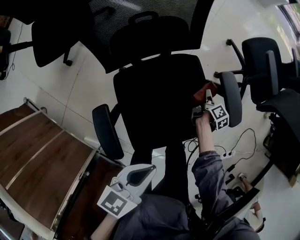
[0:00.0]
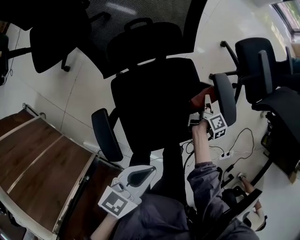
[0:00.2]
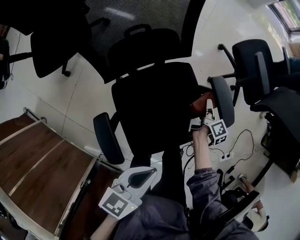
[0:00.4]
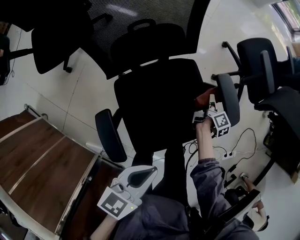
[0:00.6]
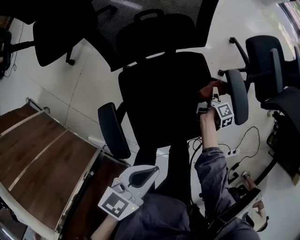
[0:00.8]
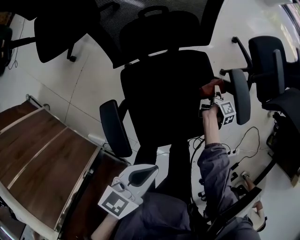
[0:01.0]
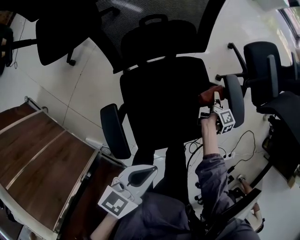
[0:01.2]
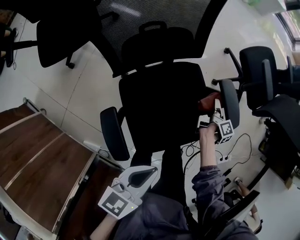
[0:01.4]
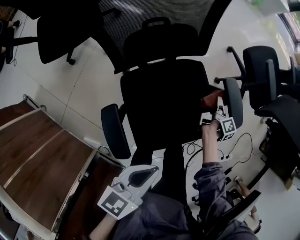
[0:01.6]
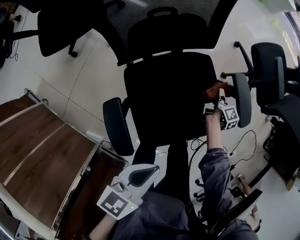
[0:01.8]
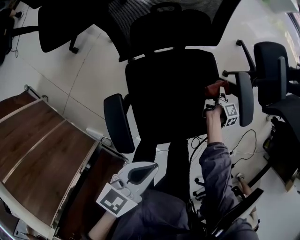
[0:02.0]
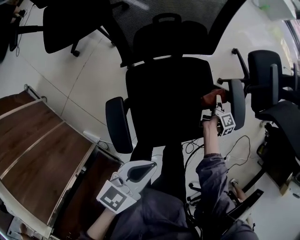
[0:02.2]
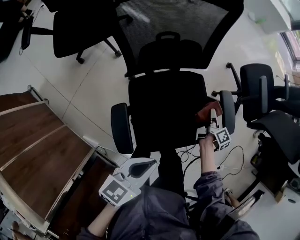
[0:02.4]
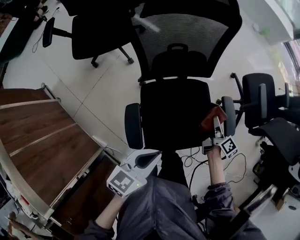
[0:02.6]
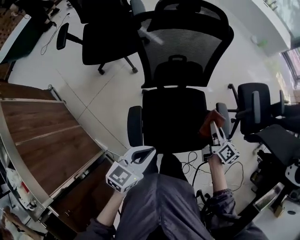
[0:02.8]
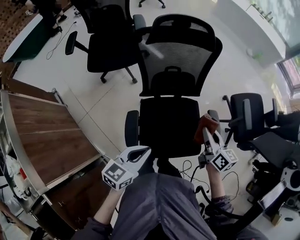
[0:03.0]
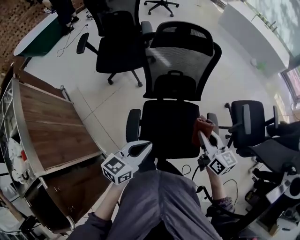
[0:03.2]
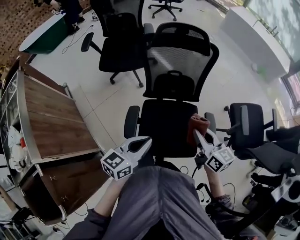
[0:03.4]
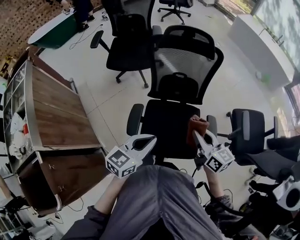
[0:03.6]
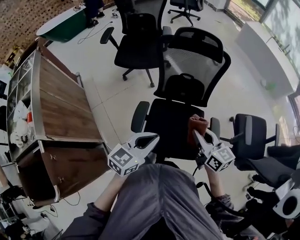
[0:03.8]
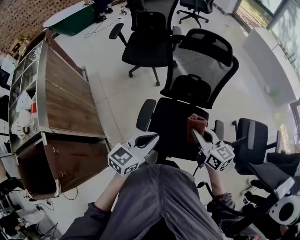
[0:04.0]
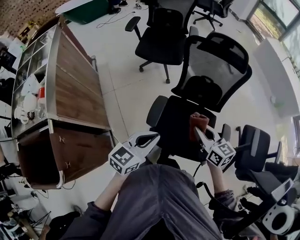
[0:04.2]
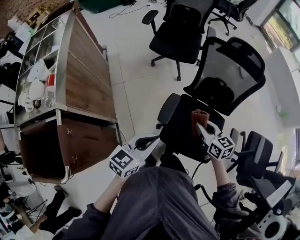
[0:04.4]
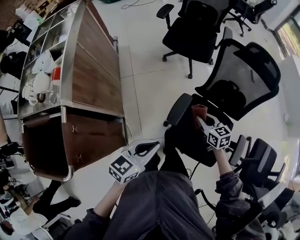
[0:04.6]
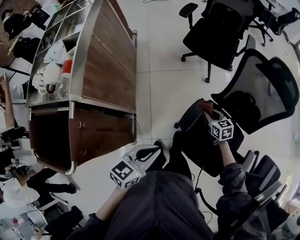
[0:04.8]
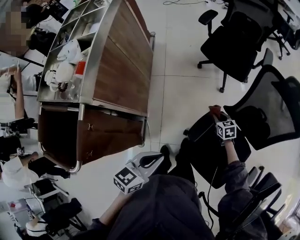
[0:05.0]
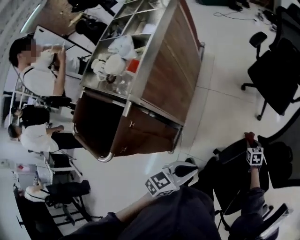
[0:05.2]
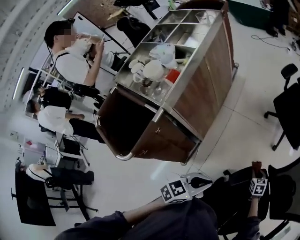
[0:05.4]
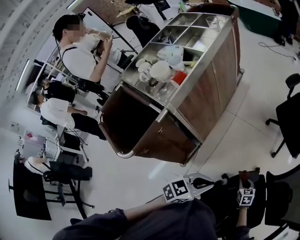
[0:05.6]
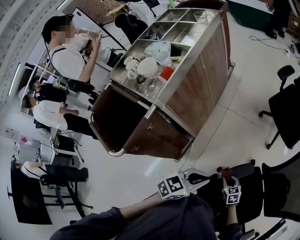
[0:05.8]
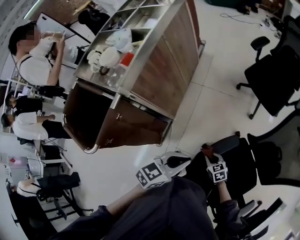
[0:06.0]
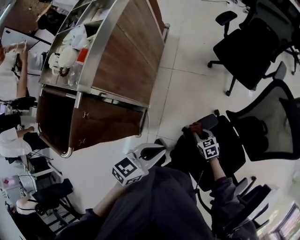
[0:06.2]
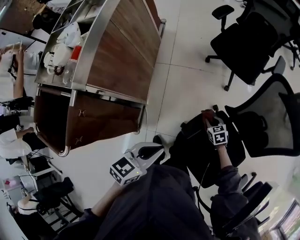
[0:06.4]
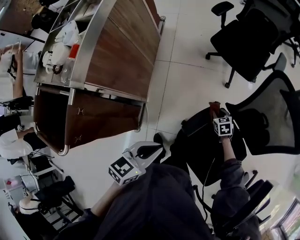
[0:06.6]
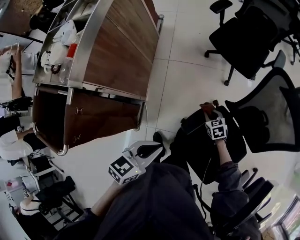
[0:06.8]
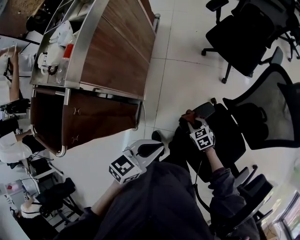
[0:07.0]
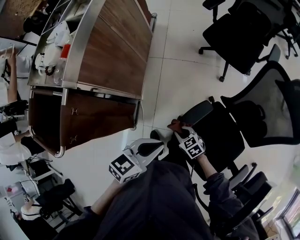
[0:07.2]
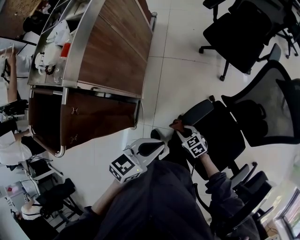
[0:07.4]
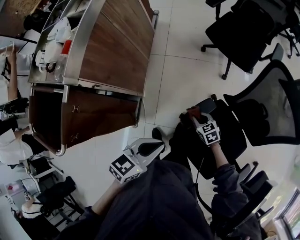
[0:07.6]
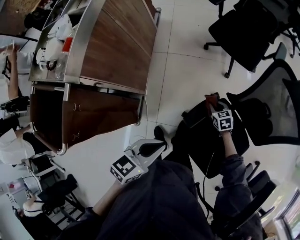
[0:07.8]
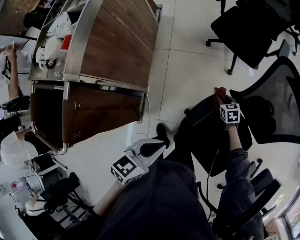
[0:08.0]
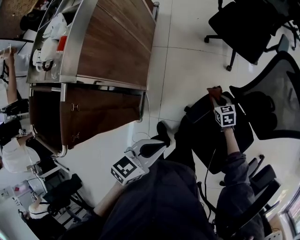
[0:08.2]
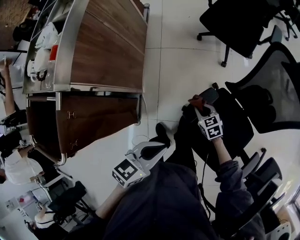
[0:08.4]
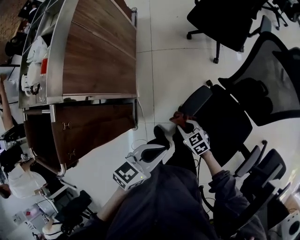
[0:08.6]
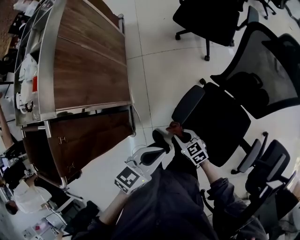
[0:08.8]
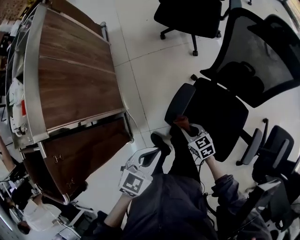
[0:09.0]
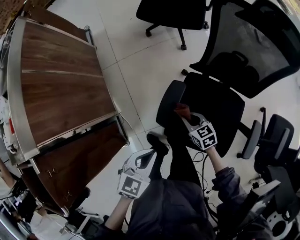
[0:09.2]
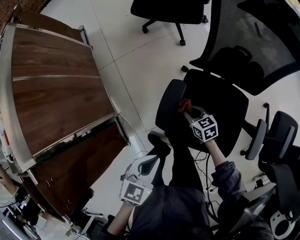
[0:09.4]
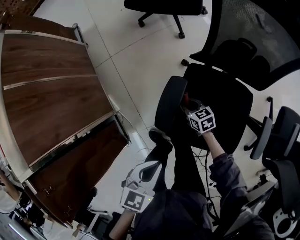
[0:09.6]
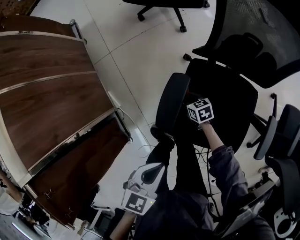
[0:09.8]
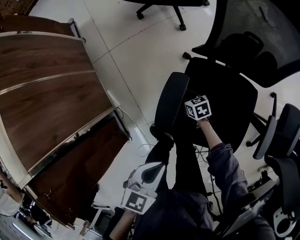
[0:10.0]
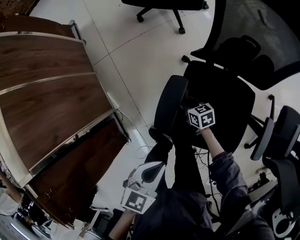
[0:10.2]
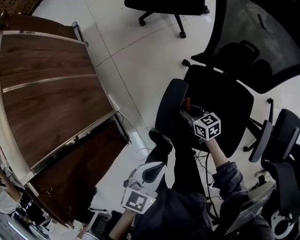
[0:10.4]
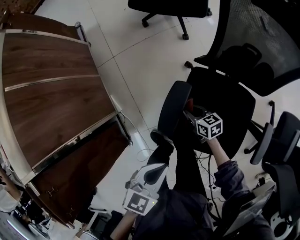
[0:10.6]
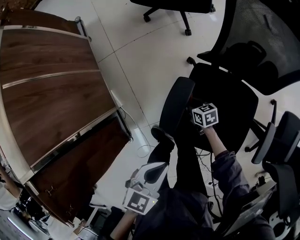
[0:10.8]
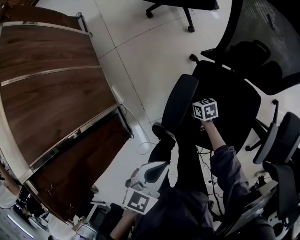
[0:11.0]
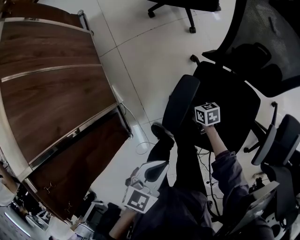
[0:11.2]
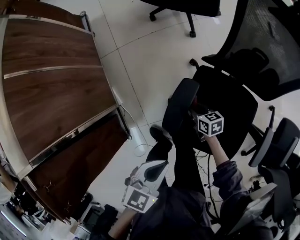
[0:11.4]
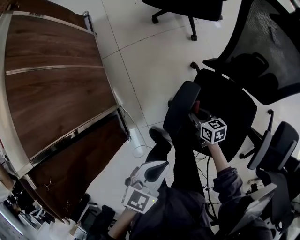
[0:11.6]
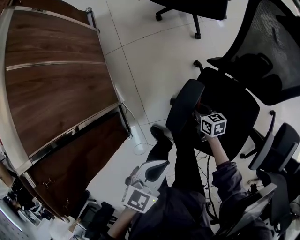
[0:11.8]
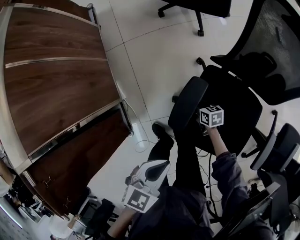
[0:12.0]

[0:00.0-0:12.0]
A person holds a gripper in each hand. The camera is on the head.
0:00.0 to 0:01.6: The right gripper moves up and down over about 10 cm, changing direction 2 times.
0:01.6 to 0:03.0: The right gripper travels upward by roughly 35 cm, and swivels roughly 70 degrees. Meanwhile the left gripper is displaced upward by roughly 15 cm, and rotates some 20 degrees.
0:03.0 to 0:04.4: The left gripper changes place by about 15 cm, and changes its angle by about 20 degrees. The right gripper goes upward and returns, about 5 cm each way, and swivels roughly 50 degrees.
0:04.4 to 0:06.0: The left gripper shifts by roughly 10 cm, and swivels approximately 30 degrees. Meanwhile the right gripper travels downward by some 25 cm, and turns by some 50 degrees.
0:06.0 to 0:07.6: The right gripper swings left and right, roughly 20 cm each way, with 2 reversals.
0:07.6 to 0:09.0: The left gripper travels downward by roughly 10 cm, and swivels roughly 20 degrees; the right gripper travels backward by roughly 10 cm, and swivels about 20 degrees.
0:09.0 to 0:10.4: The right gripper is displaced downward and forward by approximately 15 cm, and rotates some 20 degrees. The left gripper is displaced downward by approximately 5 cm.
0:10.4 to 0:12.0: The right gripper swings up and down, some 10 cm each way, with 2 reversals.

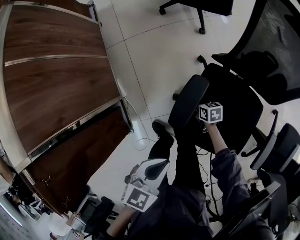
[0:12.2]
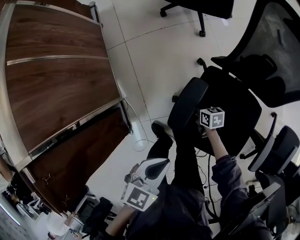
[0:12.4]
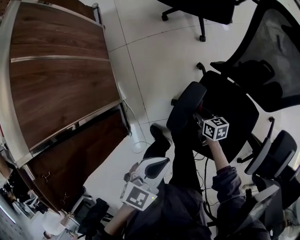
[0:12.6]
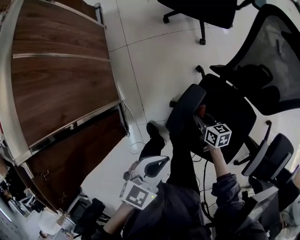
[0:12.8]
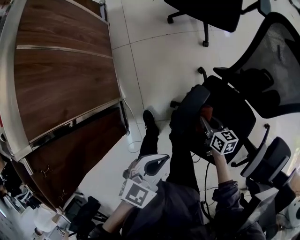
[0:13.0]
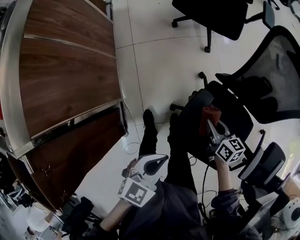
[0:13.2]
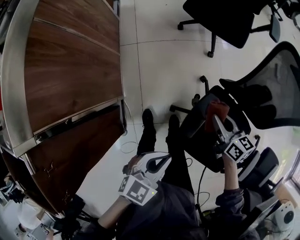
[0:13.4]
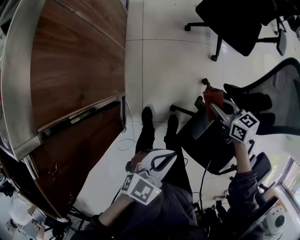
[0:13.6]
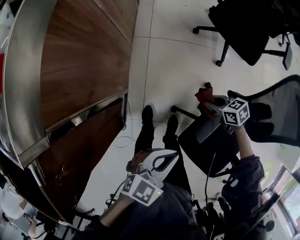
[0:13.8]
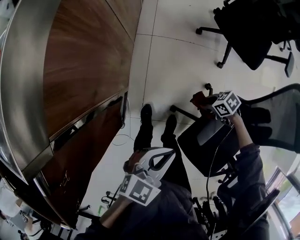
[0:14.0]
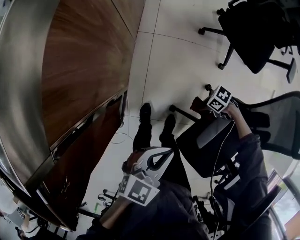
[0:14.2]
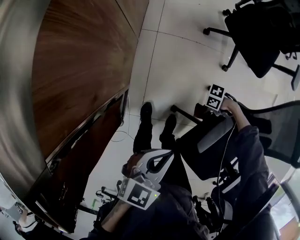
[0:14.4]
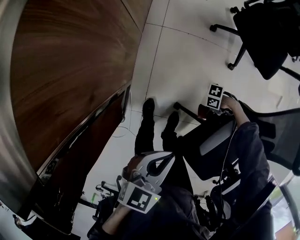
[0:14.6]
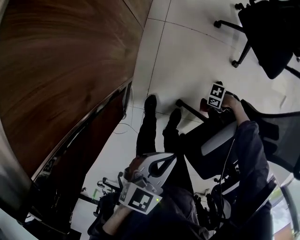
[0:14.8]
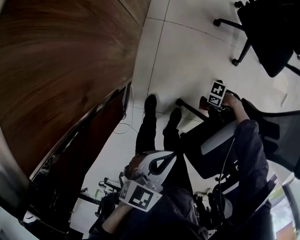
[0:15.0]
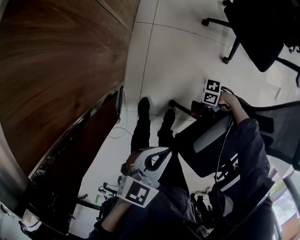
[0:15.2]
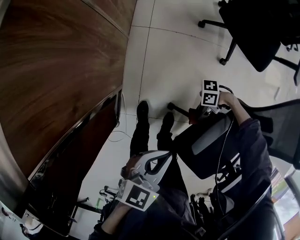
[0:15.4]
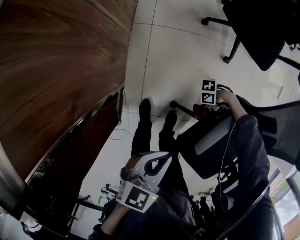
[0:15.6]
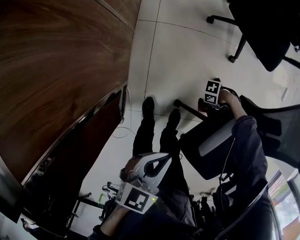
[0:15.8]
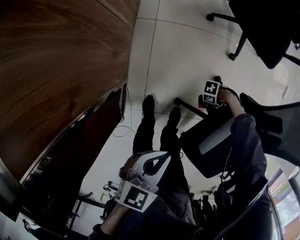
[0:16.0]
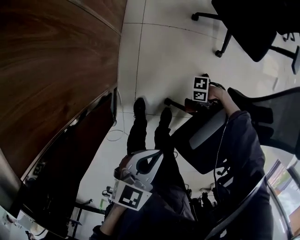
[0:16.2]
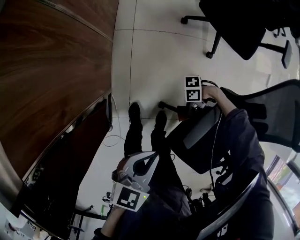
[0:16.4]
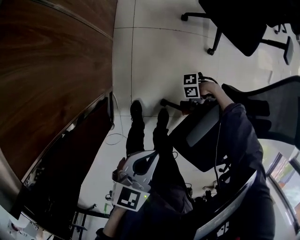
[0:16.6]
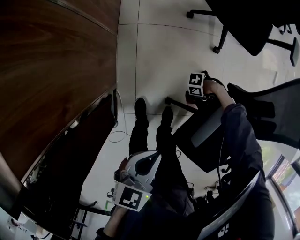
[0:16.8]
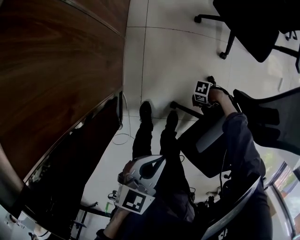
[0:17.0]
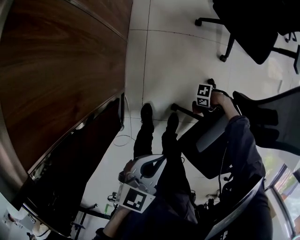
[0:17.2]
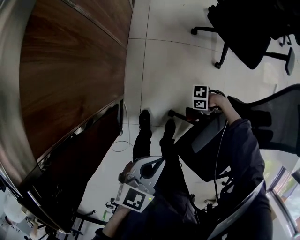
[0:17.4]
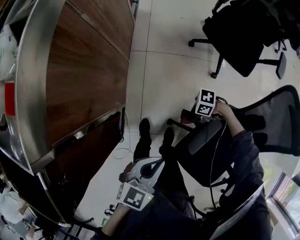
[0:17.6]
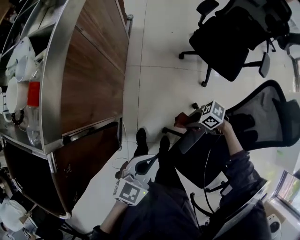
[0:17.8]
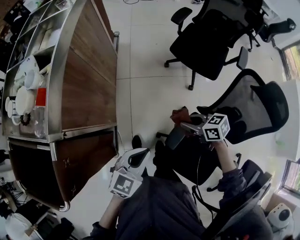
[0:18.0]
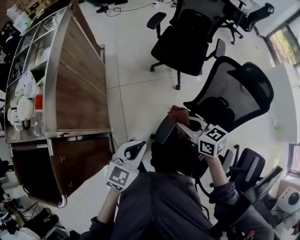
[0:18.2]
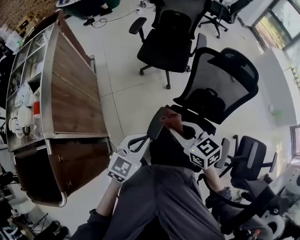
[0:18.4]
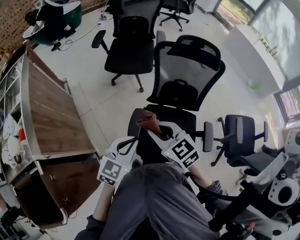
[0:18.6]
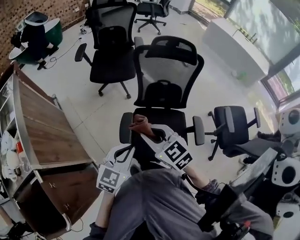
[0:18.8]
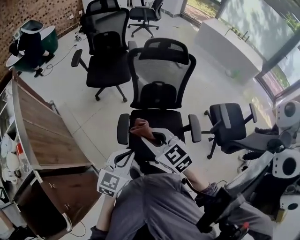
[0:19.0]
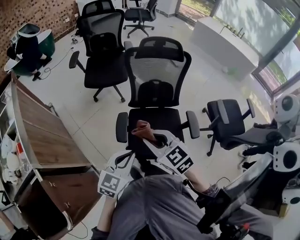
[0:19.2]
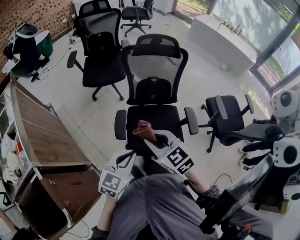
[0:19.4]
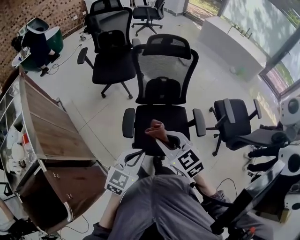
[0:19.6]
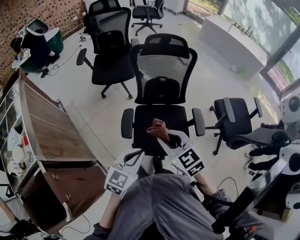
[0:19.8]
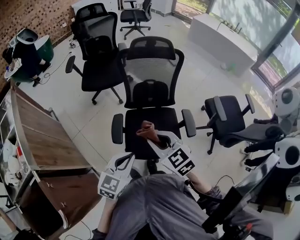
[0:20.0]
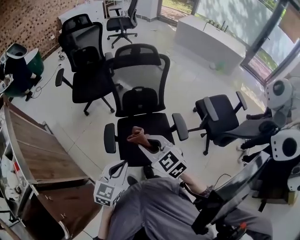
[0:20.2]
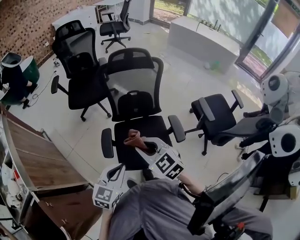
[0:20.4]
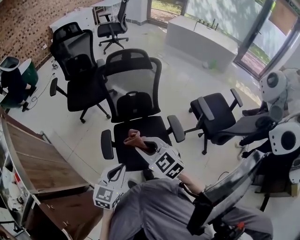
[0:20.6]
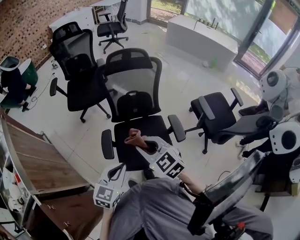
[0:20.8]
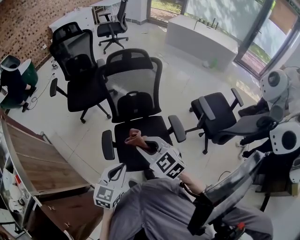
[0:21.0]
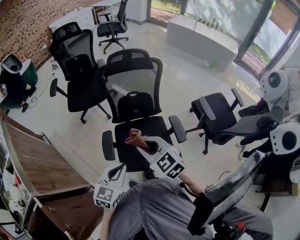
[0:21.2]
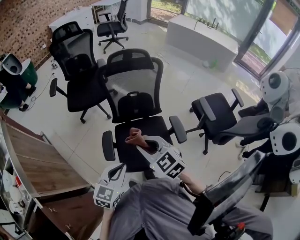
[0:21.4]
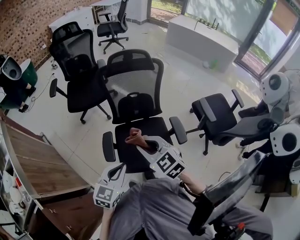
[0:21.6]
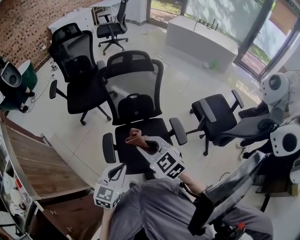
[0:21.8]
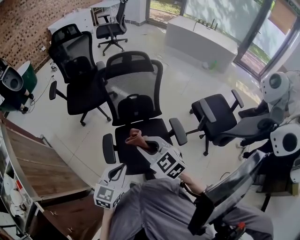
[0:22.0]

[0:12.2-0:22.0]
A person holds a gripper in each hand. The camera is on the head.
0:12.2 to 0:13.6: The left gripper heads to the left and forward, covering approximately 10 cm; the right gripper is displaced upward by roughly 25 cm, and changes its angle by some 30 degrees.
0:13.6 to 0:15.0: The left gripper changes place by about 10 cm. Meanwhile the right gripper goes some 30 cm downward, and swivels roughly 90 degrees.
0:15.0 to 0:16.4: The right gripper moves up and down over approximately 15 cm, changing direction 2 times, and swivels about 20 degrees.
0:16.4 to 0:17.8: The right gripper moves upward, some 20 cm, and swivels roughly 50 degrees. The left gripper travels upward by about 10 cm.
0:17.8 to 0:19.2: The left gripper changes place by some 30 cm, and turns by some 40 degrees, while the right gripper heads upward, covering roughly 35 cm, and turns by some 90 degrees.
0:19.2 to 0:20.6: Both grippers move to the right, about 5 cm.
0:20.6 to 0:22.0: There are only small adjustments of the grippers.

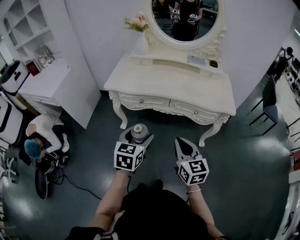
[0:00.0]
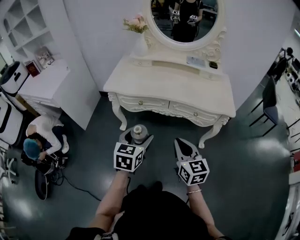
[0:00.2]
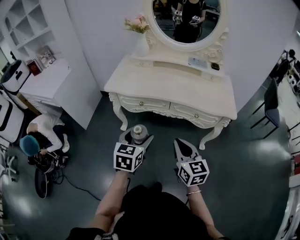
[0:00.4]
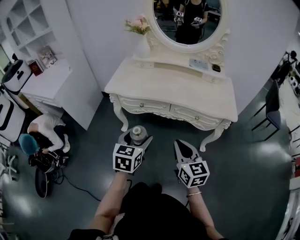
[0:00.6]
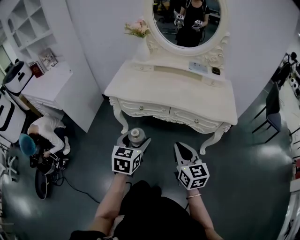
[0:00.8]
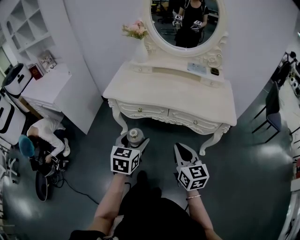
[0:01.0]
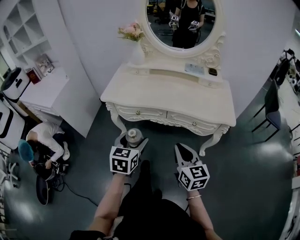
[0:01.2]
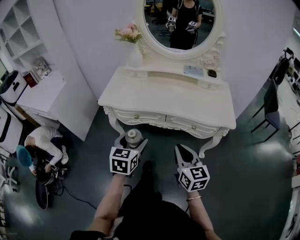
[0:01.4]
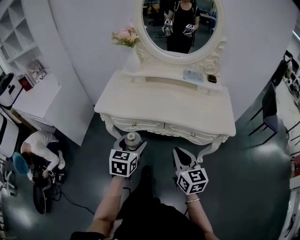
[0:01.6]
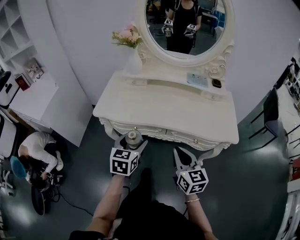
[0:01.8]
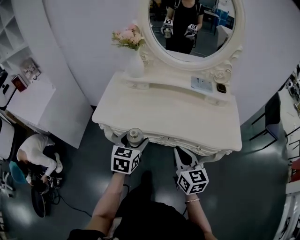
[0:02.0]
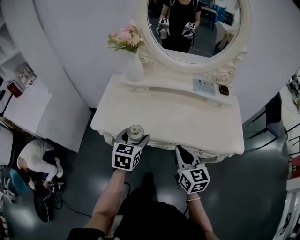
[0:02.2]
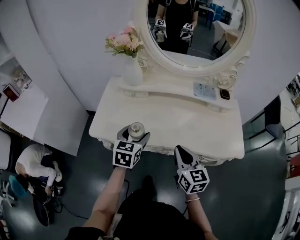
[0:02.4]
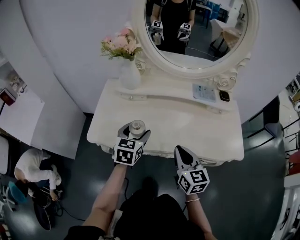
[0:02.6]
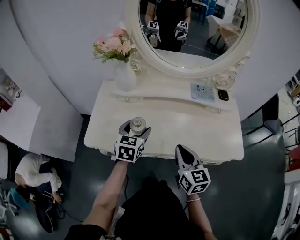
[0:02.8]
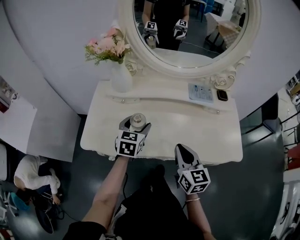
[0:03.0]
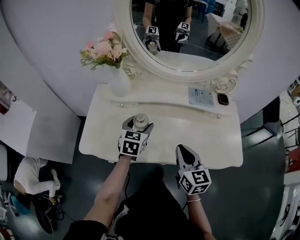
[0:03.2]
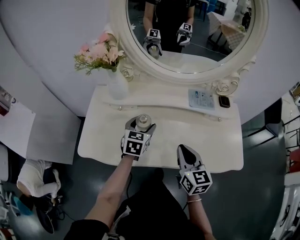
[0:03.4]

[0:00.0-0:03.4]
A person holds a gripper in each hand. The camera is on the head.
0:00.0 to 0:01.6: Both grippers move forward, about 10 cm.
0:01.6 to 0:03.4: The two grippers go roughly 35 cm forward.
